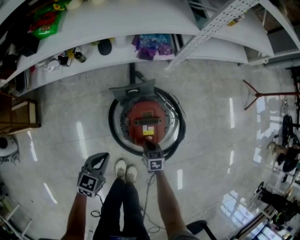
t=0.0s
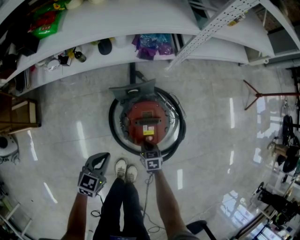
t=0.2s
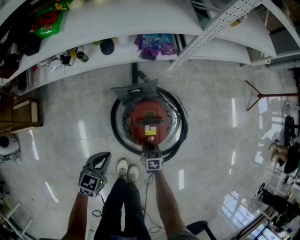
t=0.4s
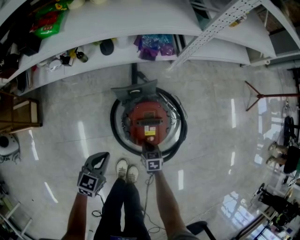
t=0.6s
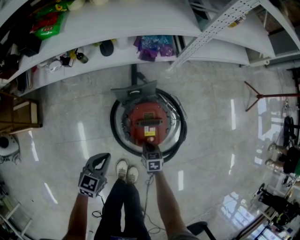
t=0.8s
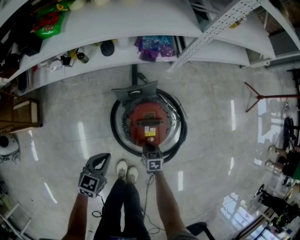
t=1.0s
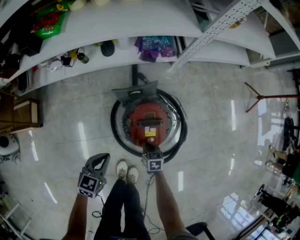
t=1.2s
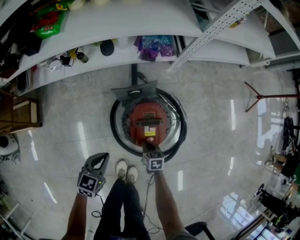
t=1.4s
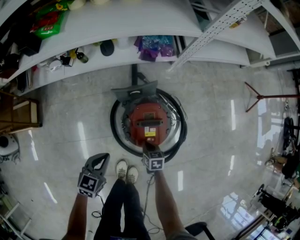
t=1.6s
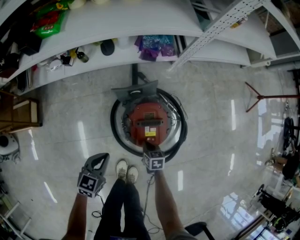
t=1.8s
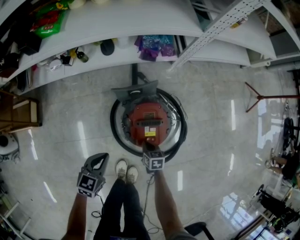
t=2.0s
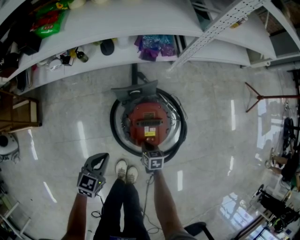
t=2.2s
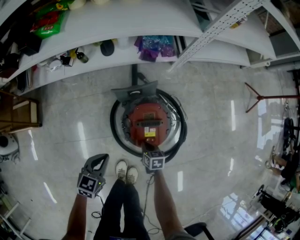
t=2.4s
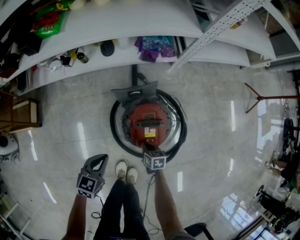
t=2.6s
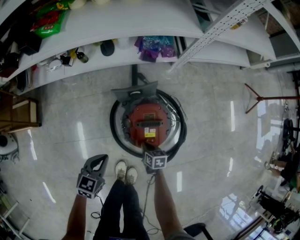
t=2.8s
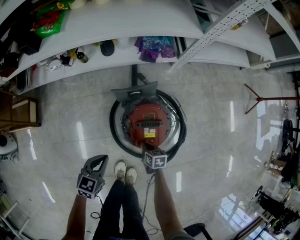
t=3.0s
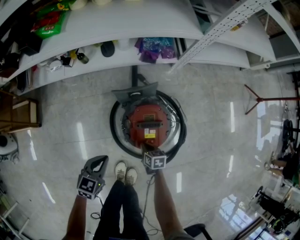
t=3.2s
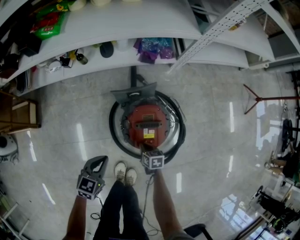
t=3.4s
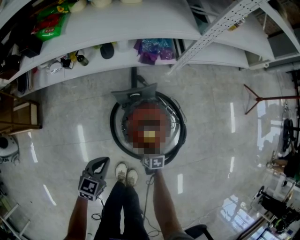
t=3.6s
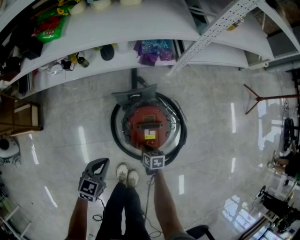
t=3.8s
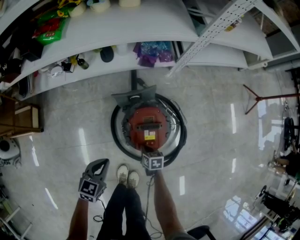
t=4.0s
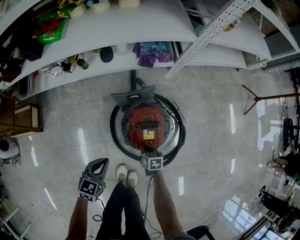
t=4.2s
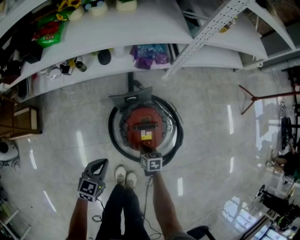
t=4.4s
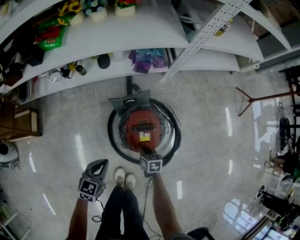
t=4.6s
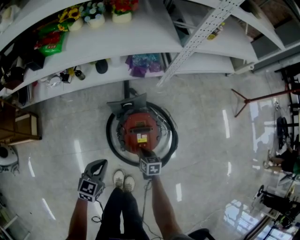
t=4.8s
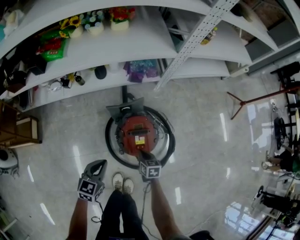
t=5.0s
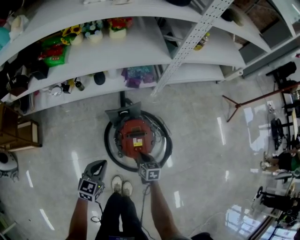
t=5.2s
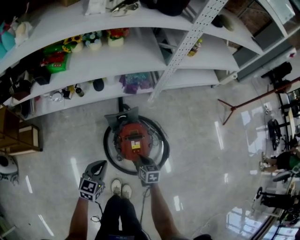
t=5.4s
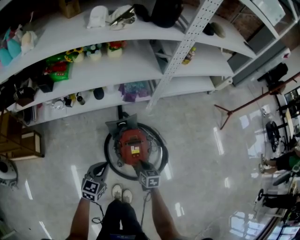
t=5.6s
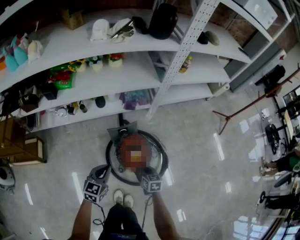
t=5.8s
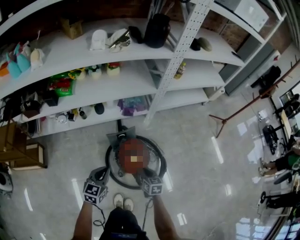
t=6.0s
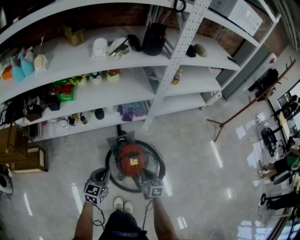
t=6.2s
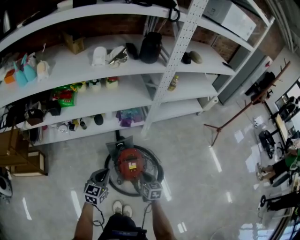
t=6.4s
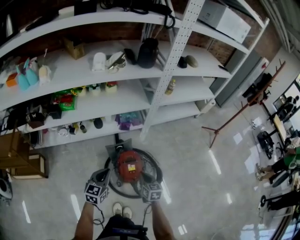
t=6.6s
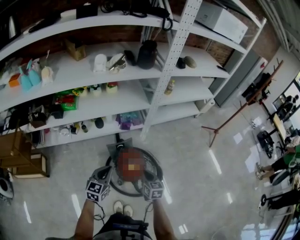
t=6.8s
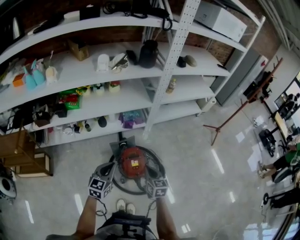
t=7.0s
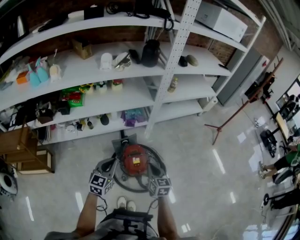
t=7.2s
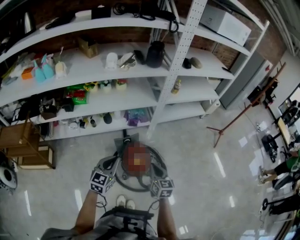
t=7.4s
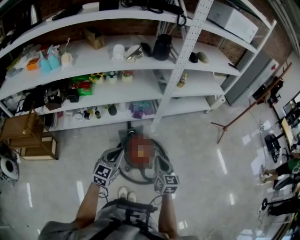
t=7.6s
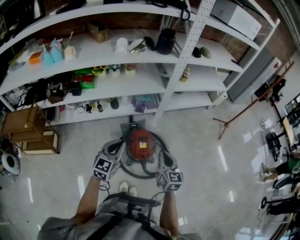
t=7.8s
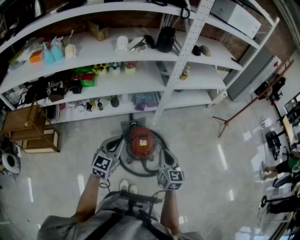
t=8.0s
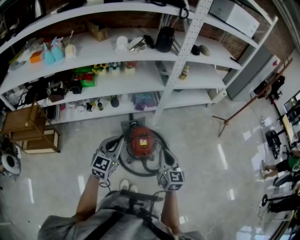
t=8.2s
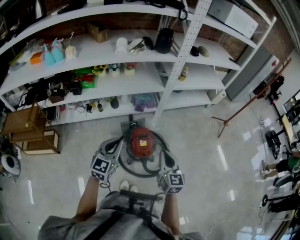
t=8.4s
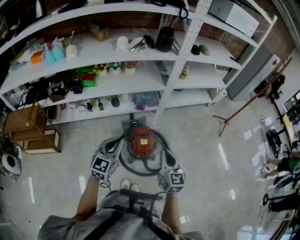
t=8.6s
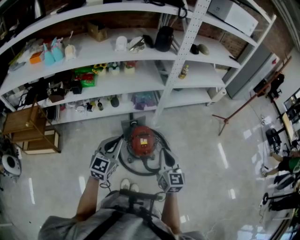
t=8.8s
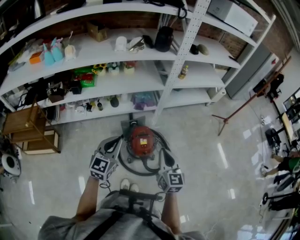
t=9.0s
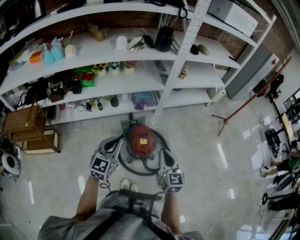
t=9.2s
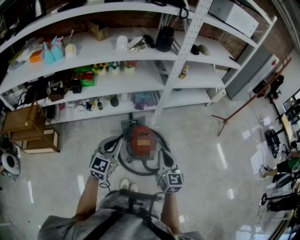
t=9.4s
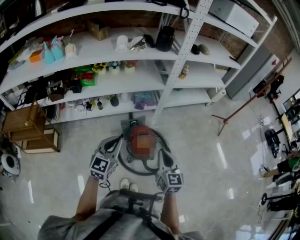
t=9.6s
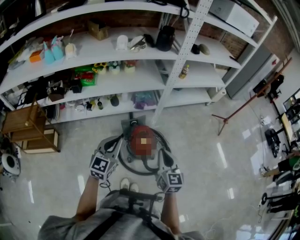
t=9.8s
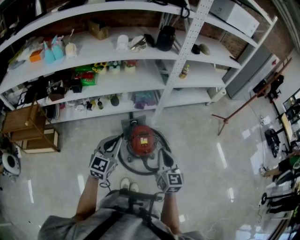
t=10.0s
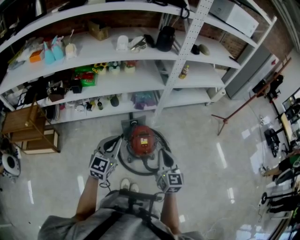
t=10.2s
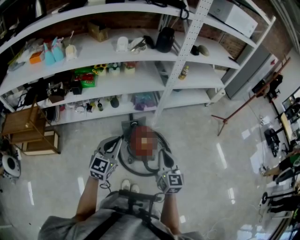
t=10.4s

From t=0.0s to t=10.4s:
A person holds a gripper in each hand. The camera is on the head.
From t=0.0s to t=4.4s: The grippers stay close to where they were, moving slightly.
From t=4.4s to t=6.0s: Both grippers travel together upward, some 25 cm. The right gripper turns by roughly 20 degrees.
From t=6.0s to t=7.4s: The two grippers go some 20 cm upward.
From t=7.4s to t=9.0s: The right gripper moves upward and backward, approximately 10 cm; the left gripper shifts roughly 5 cm upward.
From t=9.0s to t=10.4s: There are only small adjustments of the grippers.

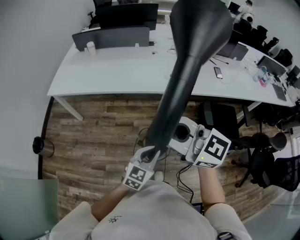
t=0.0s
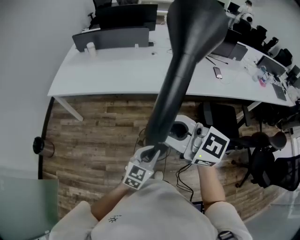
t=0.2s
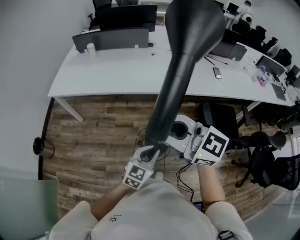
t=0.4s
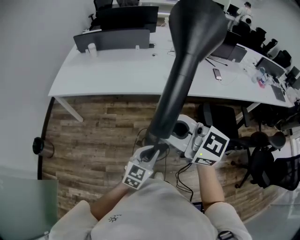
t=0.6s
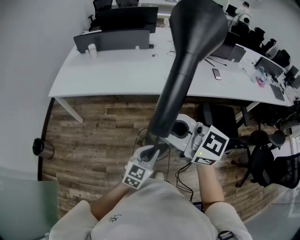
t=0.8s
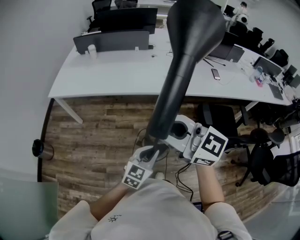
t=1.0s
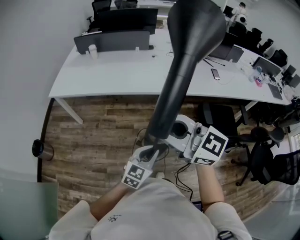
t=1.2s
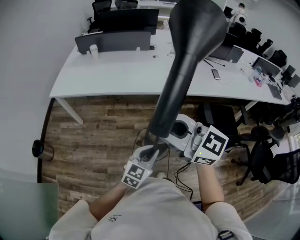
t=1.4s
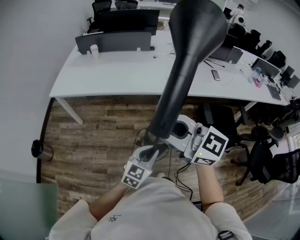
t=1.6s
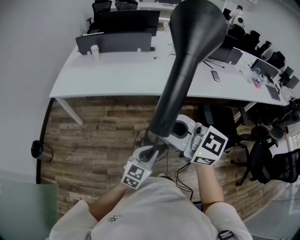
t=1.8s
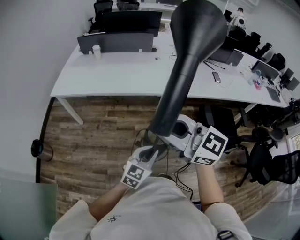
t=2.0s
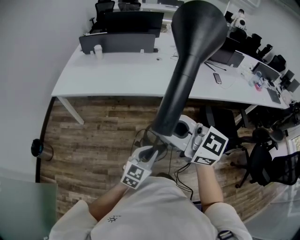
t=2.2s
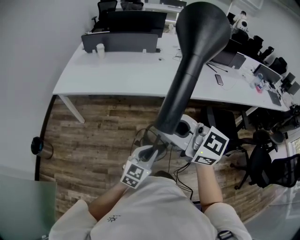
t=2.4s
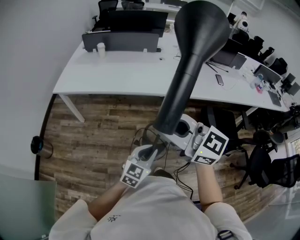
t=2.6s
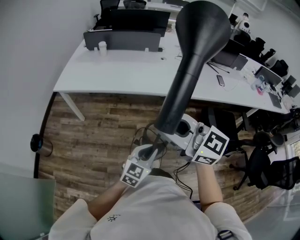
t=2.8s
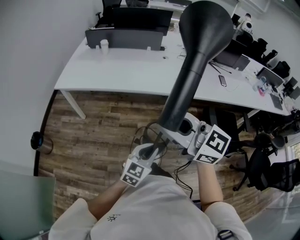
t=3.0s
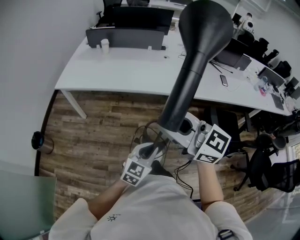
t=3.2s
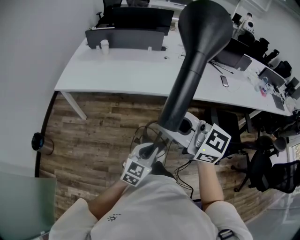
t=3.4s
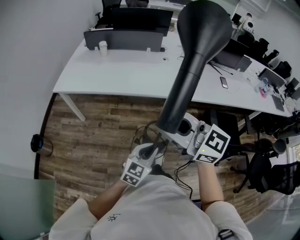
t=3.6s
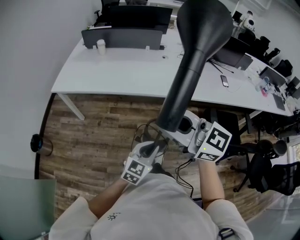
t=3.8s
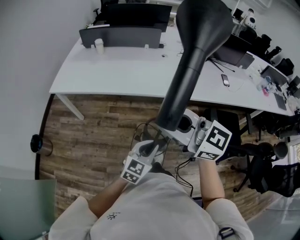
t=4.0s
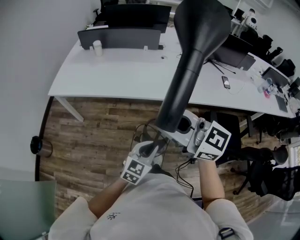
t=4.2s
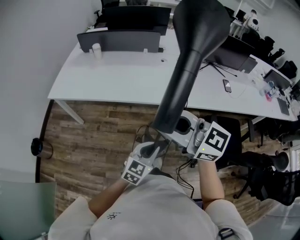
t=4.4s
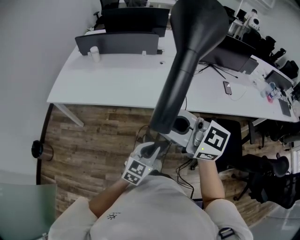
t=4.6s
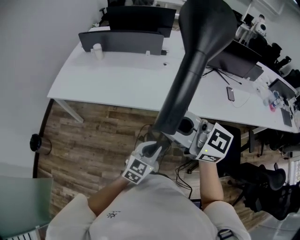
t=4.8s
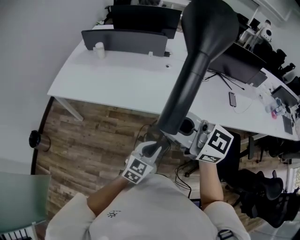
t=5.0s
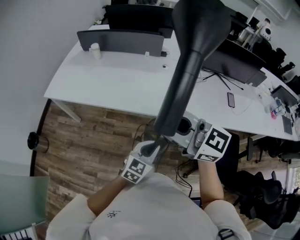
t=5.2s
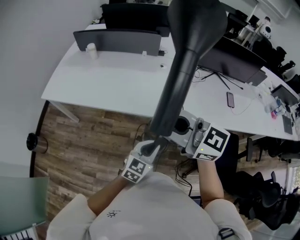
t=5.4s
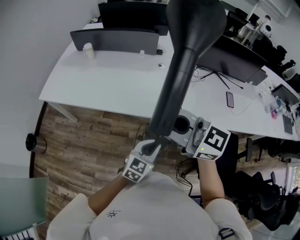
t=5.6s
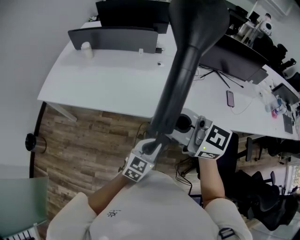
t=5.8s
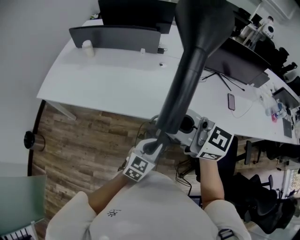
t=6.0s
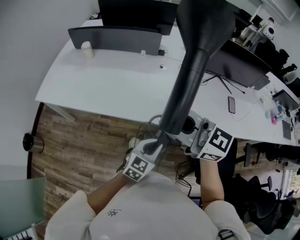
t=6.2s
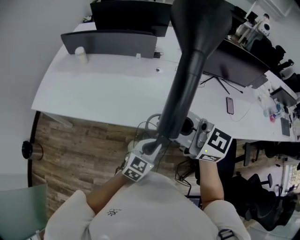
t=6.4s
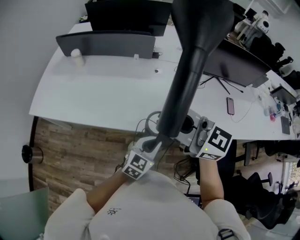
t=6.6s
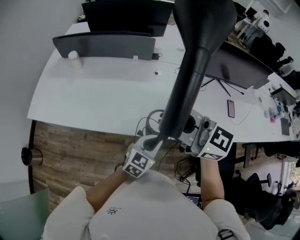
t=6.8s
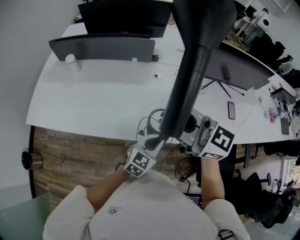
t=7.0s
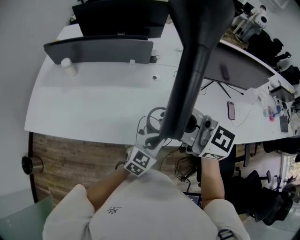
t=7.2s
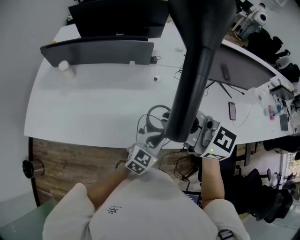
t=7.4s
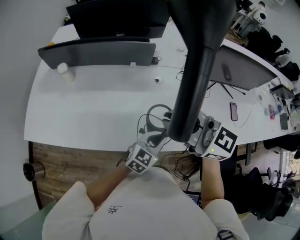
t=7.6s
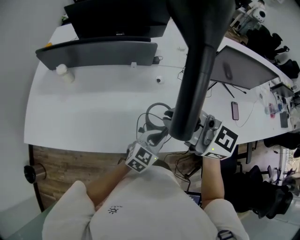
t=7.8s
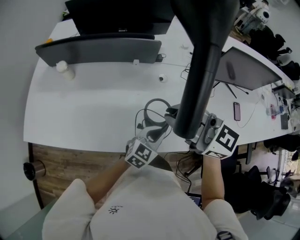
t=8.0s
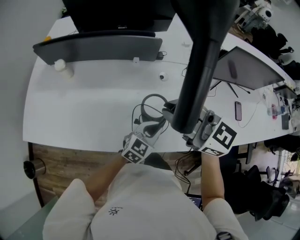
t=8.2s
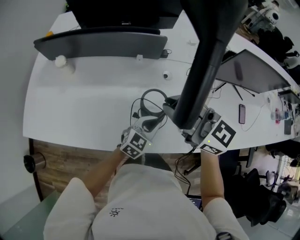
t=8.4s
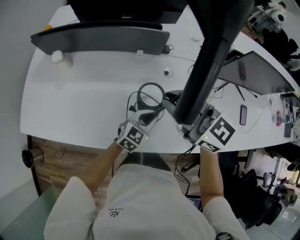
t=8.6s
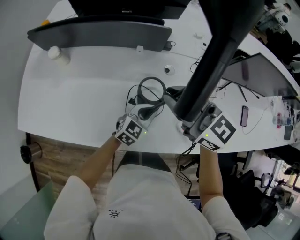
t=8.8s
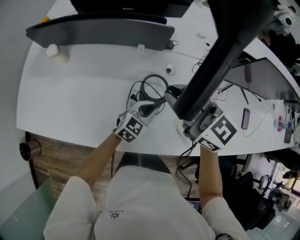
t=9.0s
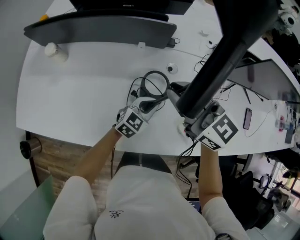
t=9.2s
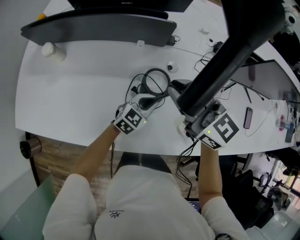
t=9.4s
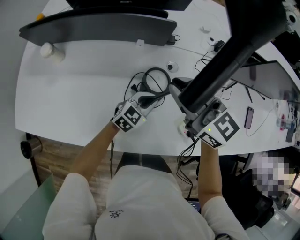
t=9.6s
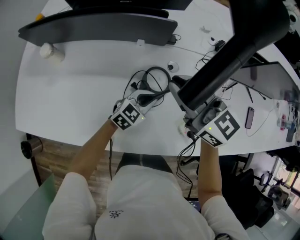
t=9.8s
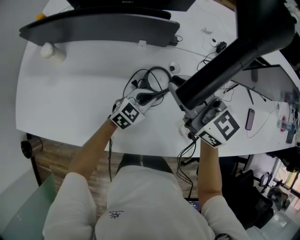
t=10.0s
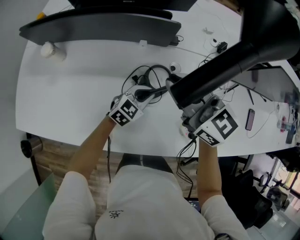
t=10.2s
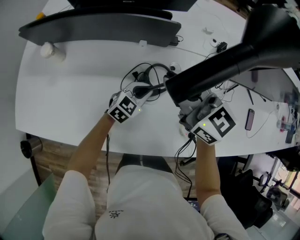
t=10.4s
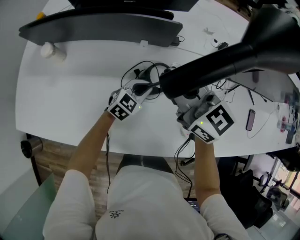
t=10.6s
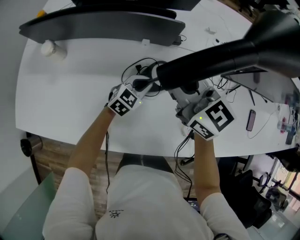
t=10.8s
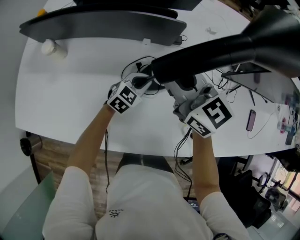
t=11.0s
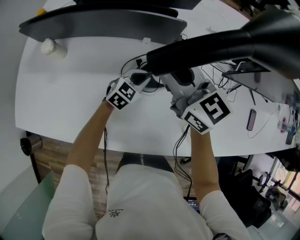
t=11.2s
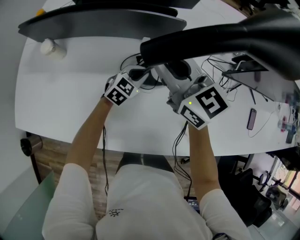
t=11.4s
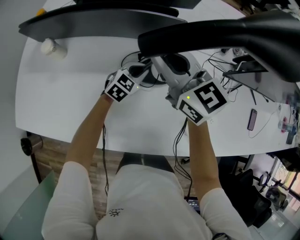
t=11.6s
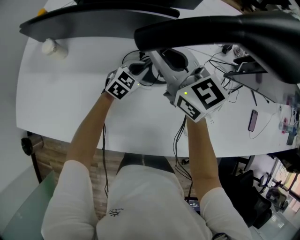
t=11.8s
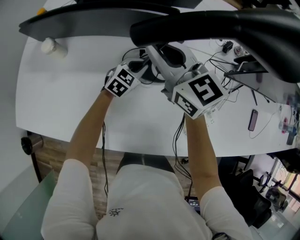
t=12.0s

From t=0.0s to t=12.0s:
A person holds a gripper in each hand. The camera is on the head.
From t=0.0s to t=1.6s: The grippers both shift to the left by about 5 cm.
From t=1.6s to t=3.0s: The left gripper shifts roughly 5 cm to the left, while the right gripper ends up approximately 5 cm from where it was.
From t=3.0s to t=4.4s: Both grippers travel together forward and to the right, roughly 15 cm.
From t=4.4s to t=6.0s: The right gripper travels forward and to the right by approximately 20 cm, while the left gripper shifts roughly 20 cm to the right and forward.
From t=6.0s to t=7.6s: Both grippers travel together forward, roughly 25 cm.
From t=7.6s to t=9.0s: The grippers both shift forward and downward by about 20 cm.
From t=9.0s to t=10.4s: Both grippers move forward, roughly 10 cm.
From t=10.4s to t=12.0s: The two grippers go some 10 cm forward and to the left.

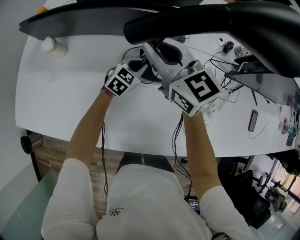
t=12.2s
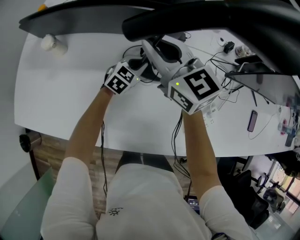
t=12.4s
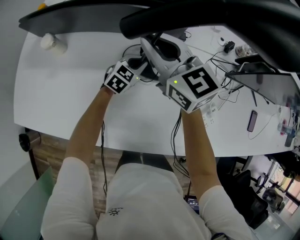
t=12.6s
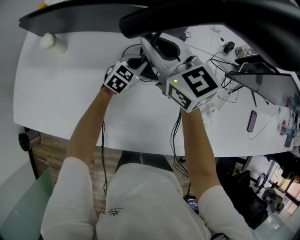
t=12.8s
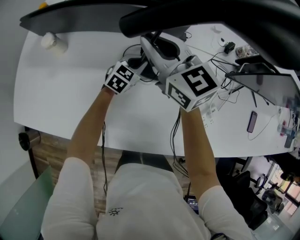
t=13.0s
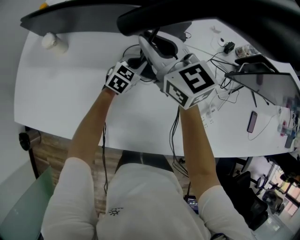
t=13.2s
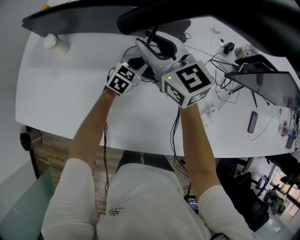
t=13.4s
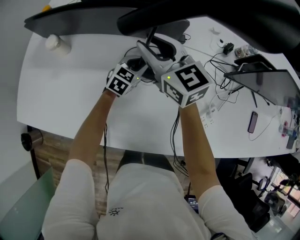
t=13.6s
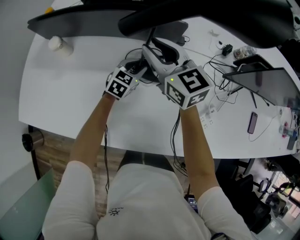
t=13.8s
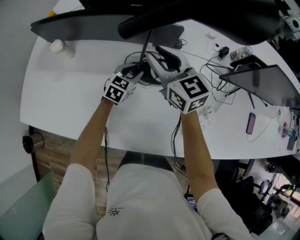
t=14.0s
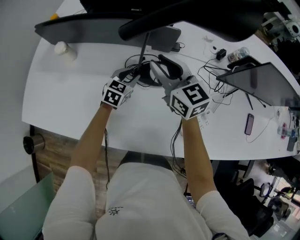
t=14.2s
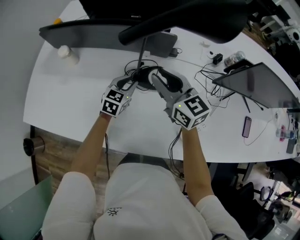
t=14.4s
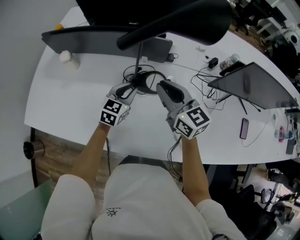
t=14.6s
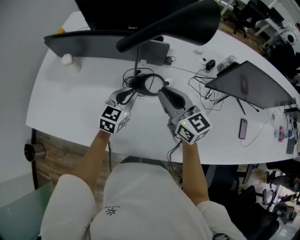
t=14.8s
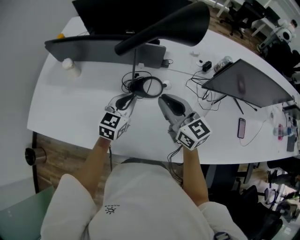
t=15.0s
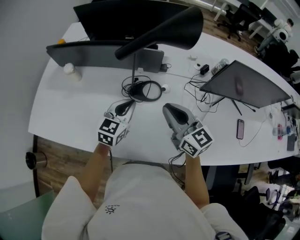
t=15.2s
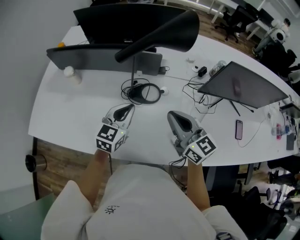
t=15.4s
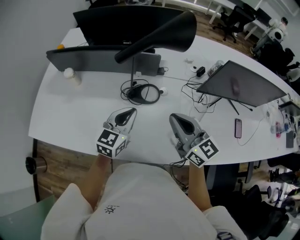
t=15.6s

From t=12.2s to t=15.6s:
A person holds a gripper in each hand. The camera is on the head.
From t=12.2s to t=13.8s: The left gripper opens up.
From t=13.8s to t=15.6s: The left gripper is displaced upward and backward by approximately 30 cm, changes its angle by about 20 degrees, and closes up, while the right gripper shifts some 30 cm backward and to the right, and closes its fingers.
